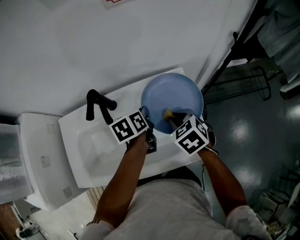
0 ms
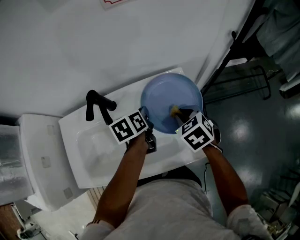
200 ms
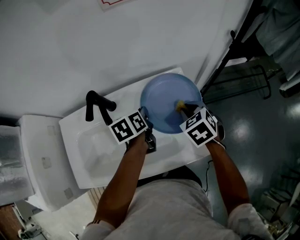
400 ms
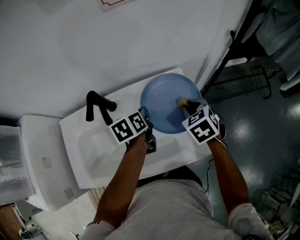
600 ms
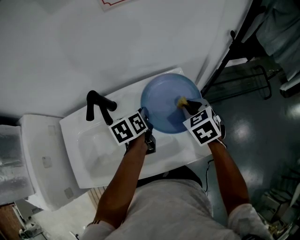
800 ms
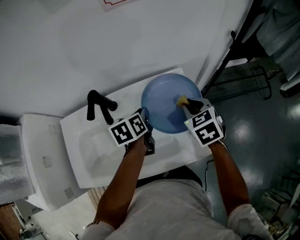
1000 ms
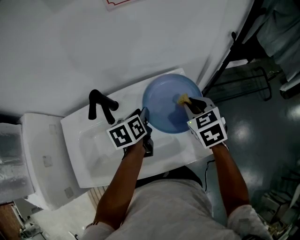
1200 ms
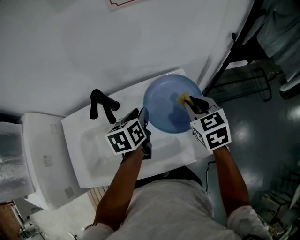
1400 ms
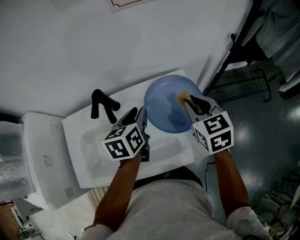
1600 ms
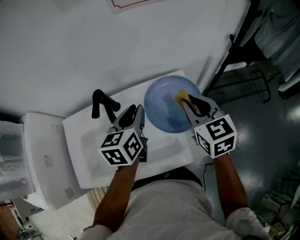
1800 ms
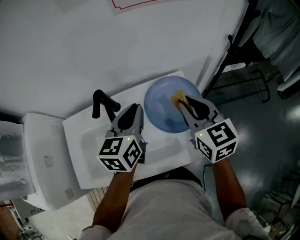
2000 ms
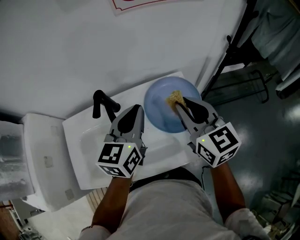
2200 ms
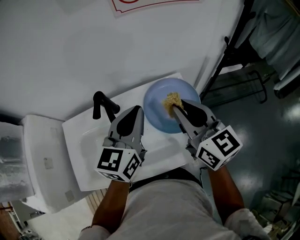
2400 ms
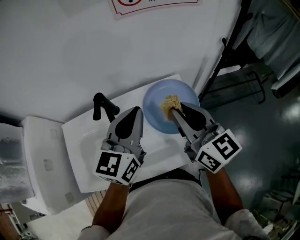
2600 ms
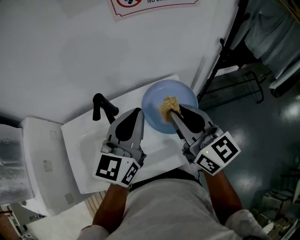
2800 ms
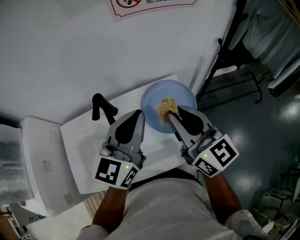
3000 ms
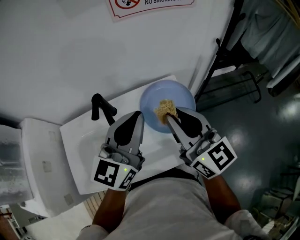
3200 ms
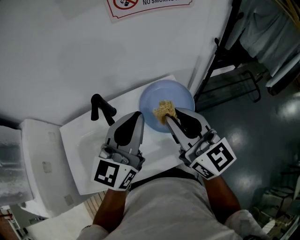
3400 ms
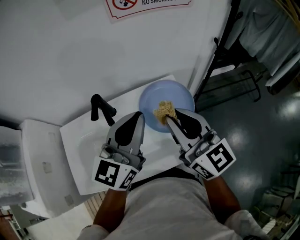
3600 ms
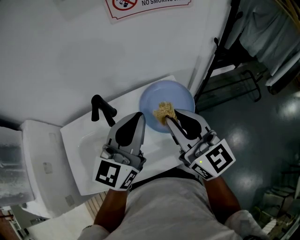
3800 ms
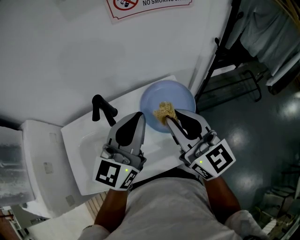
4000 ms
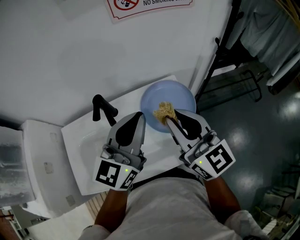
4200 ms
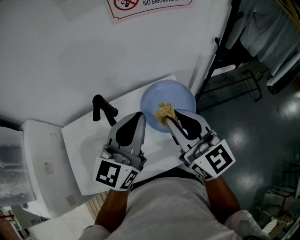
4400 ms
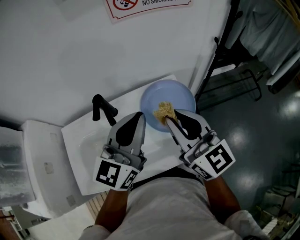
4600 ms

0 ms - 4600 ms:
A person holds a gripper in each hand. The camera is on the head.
0 ms - 1600 ms: The left gripper travels upward by about 10 cm, and opens its fingers. Meanwhile the right gripper travels upward and to the right by about 10 cm, and swivels roughly 30 degrees.
1600 ms - 3000 ms: The right gripper moves upward, backward and to the left, approximately 15 cm, and tilts its fingers approximately 40 degrees upward. The left gripper shifts about 15 cm upward, tips its fingers upward by roughly 30 degrees, and closes.
3000 ms - 4600 ms: The grippers stay close to where they were, moving slightly.

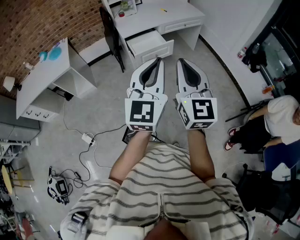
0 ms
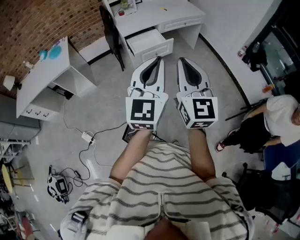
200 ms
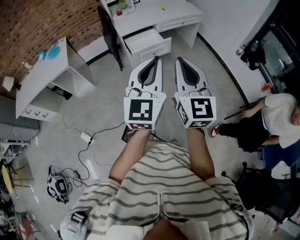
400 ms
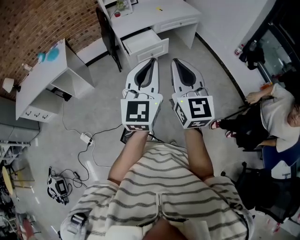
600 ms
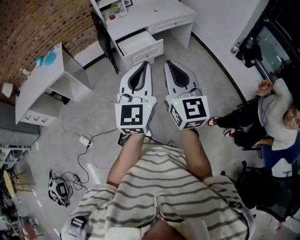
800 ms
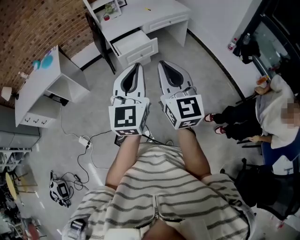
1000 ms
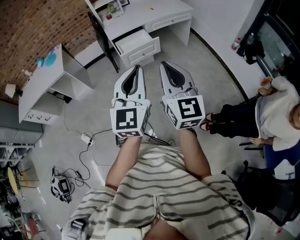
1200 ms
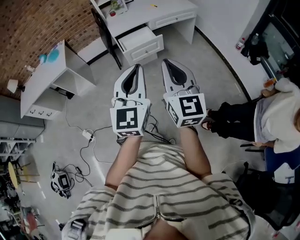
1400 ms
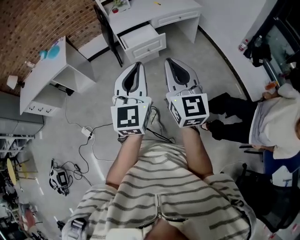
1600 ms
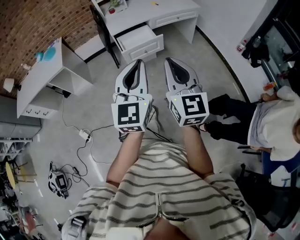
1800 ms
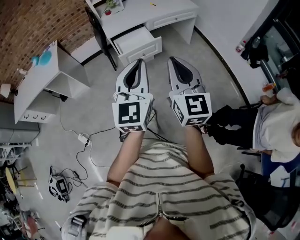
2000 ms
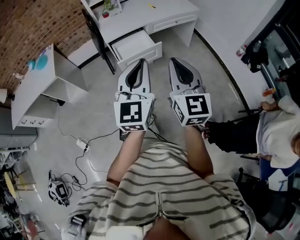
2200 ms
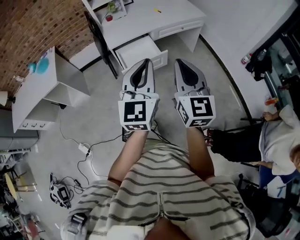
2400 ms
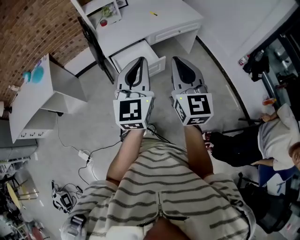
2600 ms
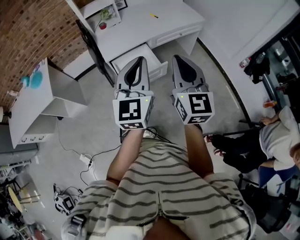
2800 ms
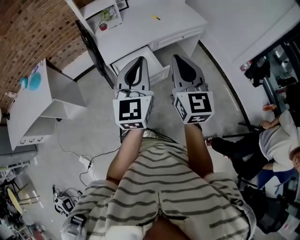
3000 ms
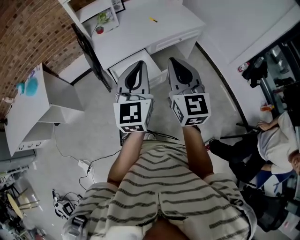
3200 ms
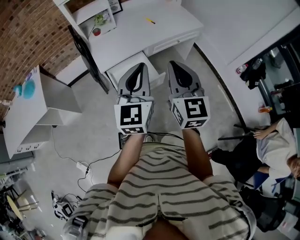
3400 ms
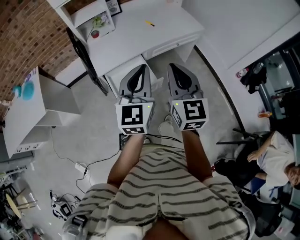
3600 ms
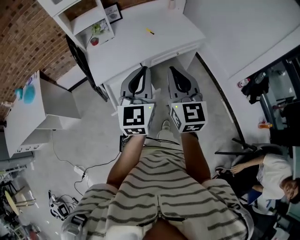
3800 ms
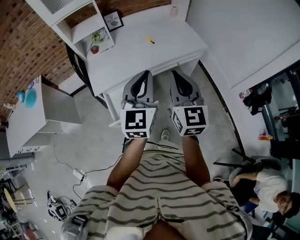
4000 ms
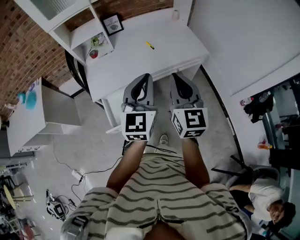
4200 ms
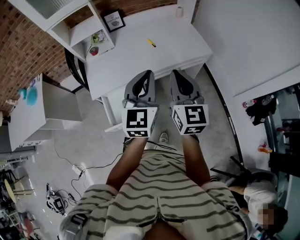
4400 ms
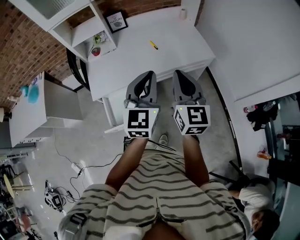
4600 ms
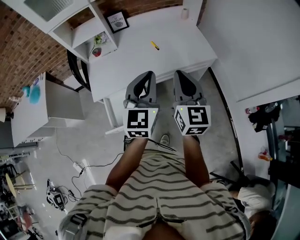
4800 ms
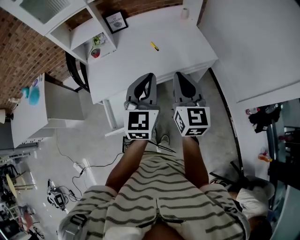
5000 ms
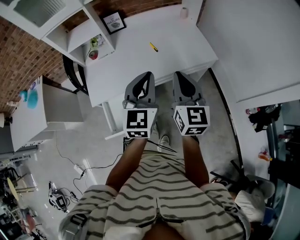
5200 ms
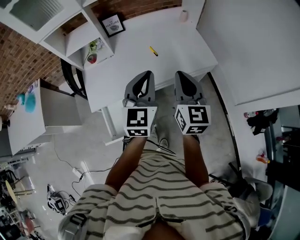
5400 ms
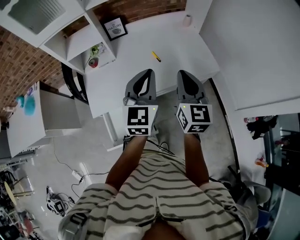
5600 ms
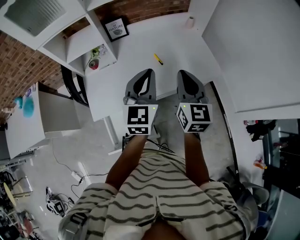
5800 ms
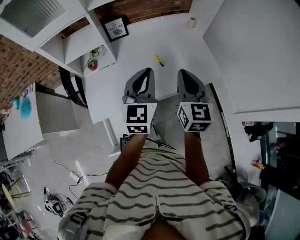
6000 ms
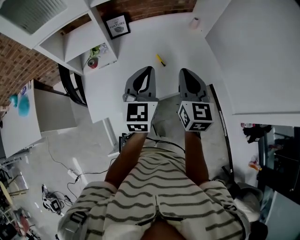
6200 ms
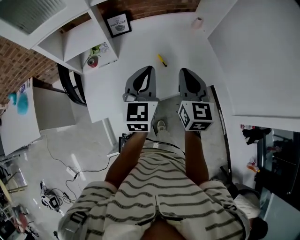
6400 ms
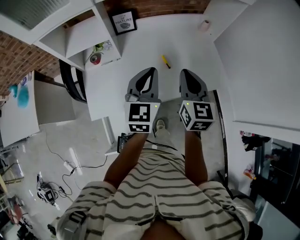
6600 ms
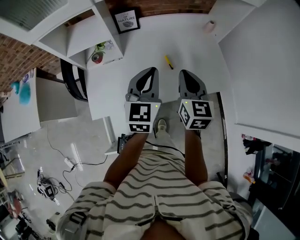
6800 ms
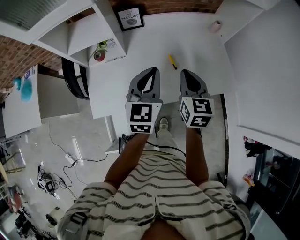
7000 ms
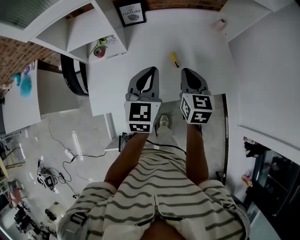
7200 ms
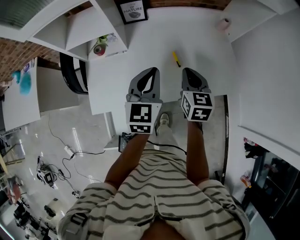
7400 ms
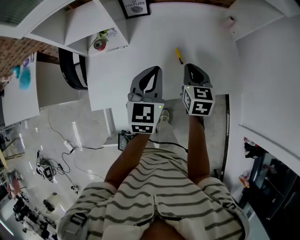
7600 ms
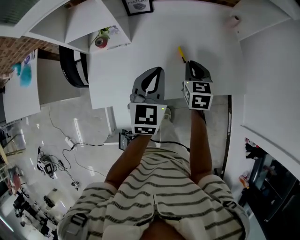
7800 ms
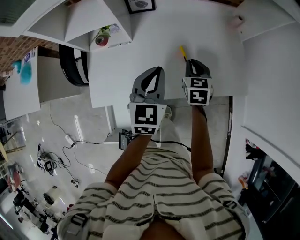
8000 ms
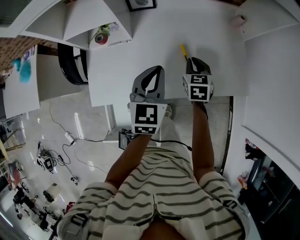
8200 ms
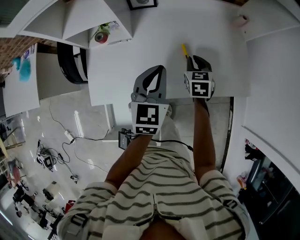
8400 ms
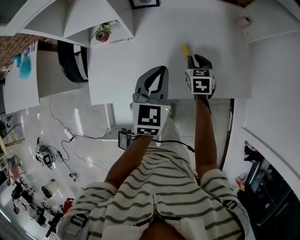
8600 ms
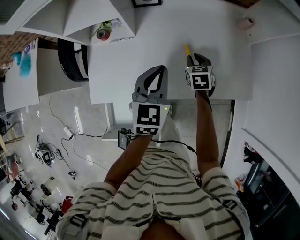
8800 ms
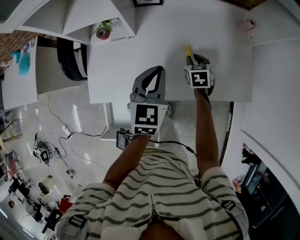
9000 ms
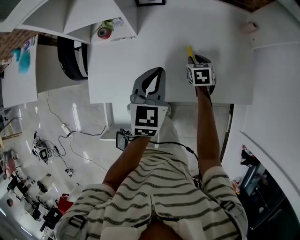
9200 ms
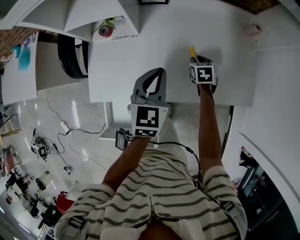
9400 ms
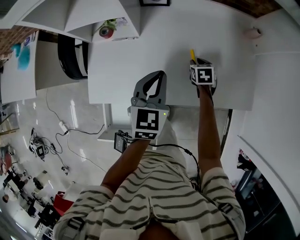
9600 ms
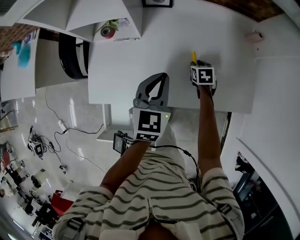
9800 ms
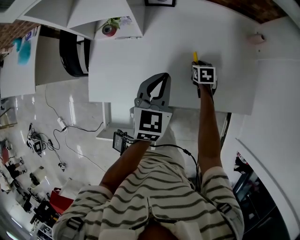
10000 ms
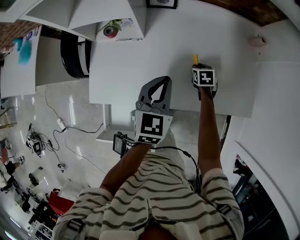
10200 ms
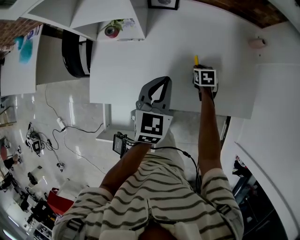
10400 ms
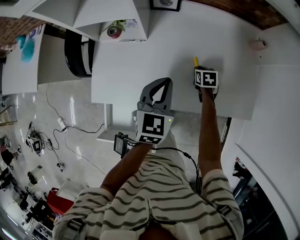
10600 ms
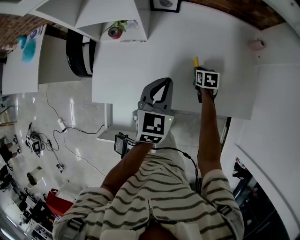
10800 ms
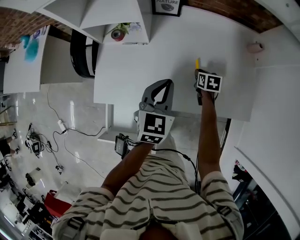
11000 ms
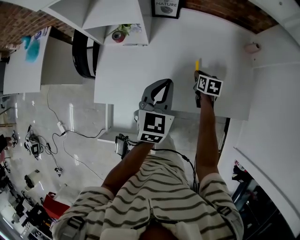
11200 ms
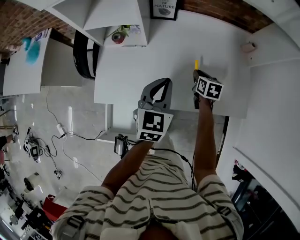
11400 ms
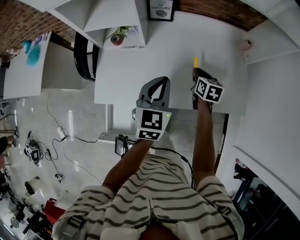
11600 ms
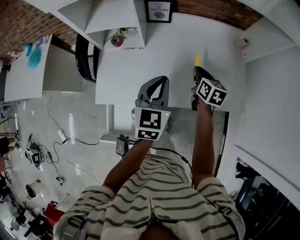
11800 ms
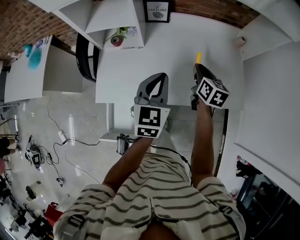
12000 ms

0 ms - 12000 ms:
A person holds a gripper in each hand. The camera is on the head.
0 ms - 1600 ms: Both grippers travel together to the right, approximately 10 cm.
1600 ms - 3000 ms: The two grippers travel together, forward, some 40 cm.
3000 ms - 4400 ms: The two grippers go roughly 30 cm forward and to the right.
4400 ms - 6000 ms: Both grippers travel together forward, approximately 25 cm.
6000 ms - 7600 ms: The left gripper goes some 15 cm downward and forward. The right gripper travels downward and forward by some 25 cm, and rotates roughly 30 degrees.
7600 ms - 9000 ms: The right gripper moves downward and forward, roughly 20 cm, and rotates some 20 degrees, while the left gripper moves downward, roughly 5 cm.
9000 ms - 10400 ms: The right gripper goes about 10 cm downward.
10400 ms - 12000 ms: The left gripper goes some 10 cm upward and backward. Meanwhile the right gripper is displaced upward by about 25 cm, and angles its fingers upward, by some 30 degrees.

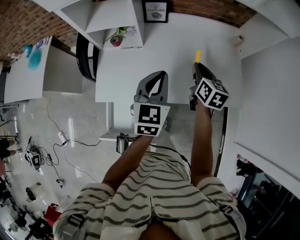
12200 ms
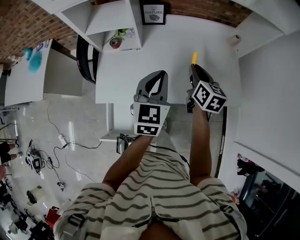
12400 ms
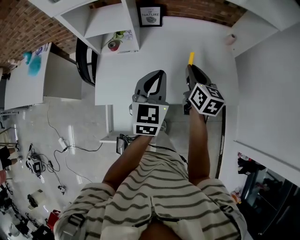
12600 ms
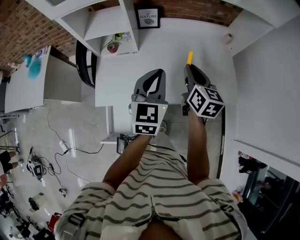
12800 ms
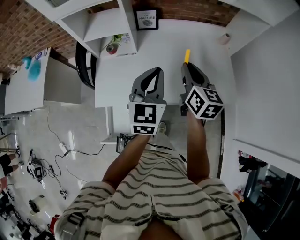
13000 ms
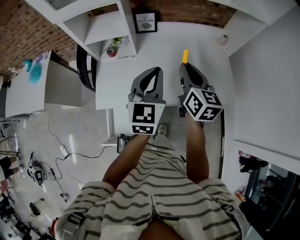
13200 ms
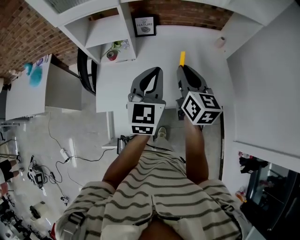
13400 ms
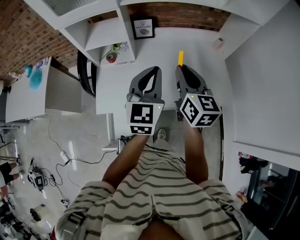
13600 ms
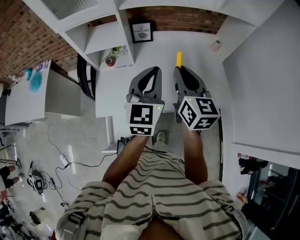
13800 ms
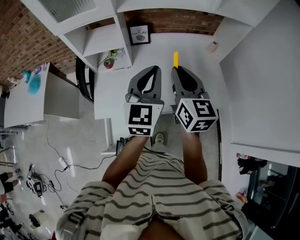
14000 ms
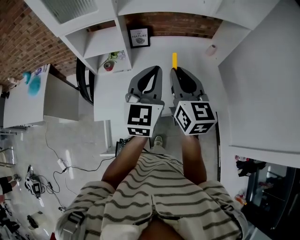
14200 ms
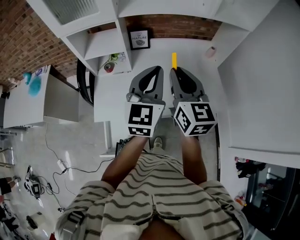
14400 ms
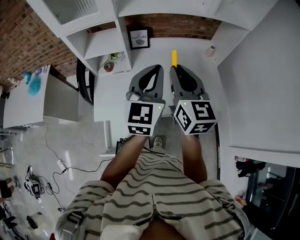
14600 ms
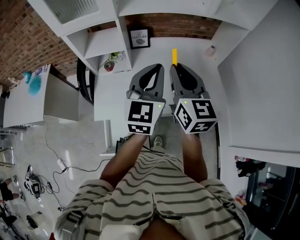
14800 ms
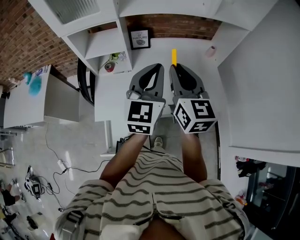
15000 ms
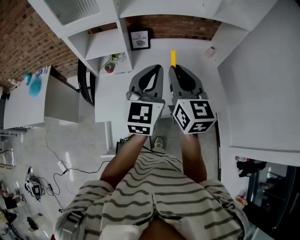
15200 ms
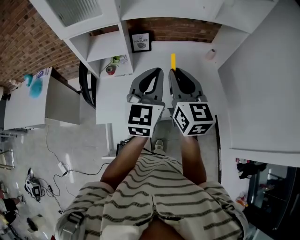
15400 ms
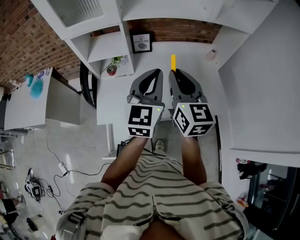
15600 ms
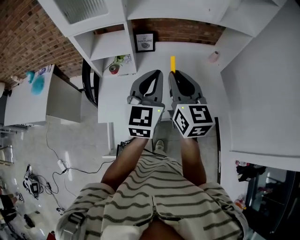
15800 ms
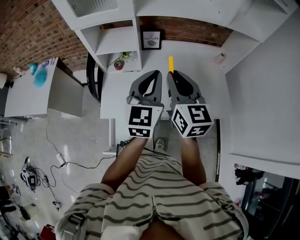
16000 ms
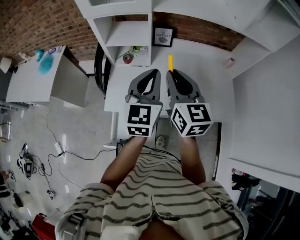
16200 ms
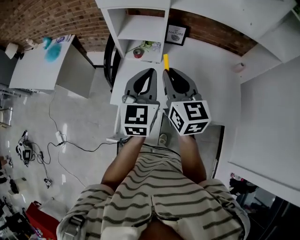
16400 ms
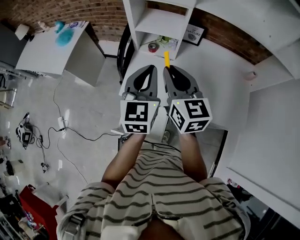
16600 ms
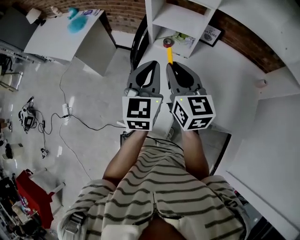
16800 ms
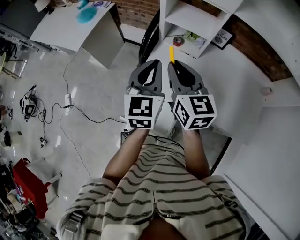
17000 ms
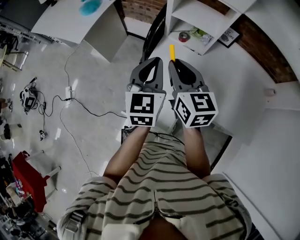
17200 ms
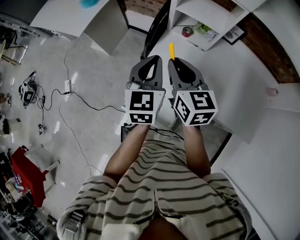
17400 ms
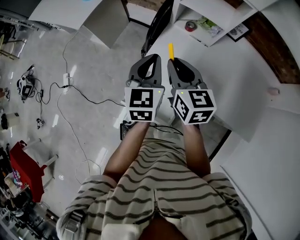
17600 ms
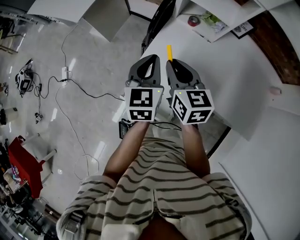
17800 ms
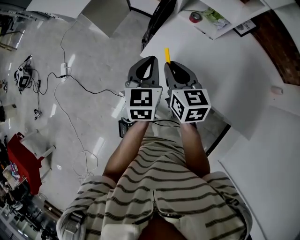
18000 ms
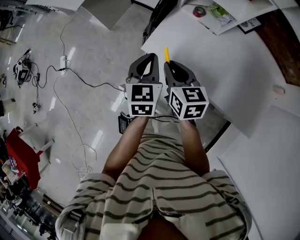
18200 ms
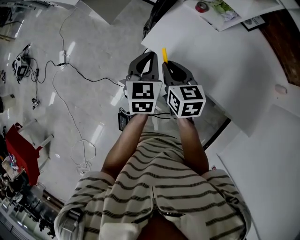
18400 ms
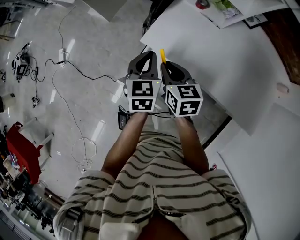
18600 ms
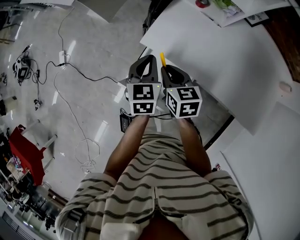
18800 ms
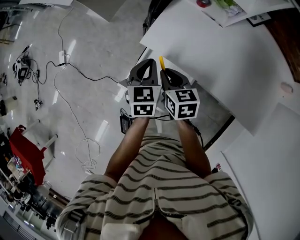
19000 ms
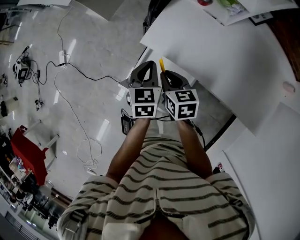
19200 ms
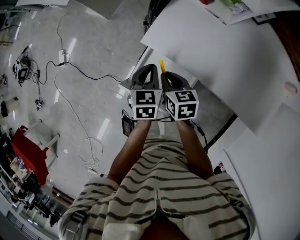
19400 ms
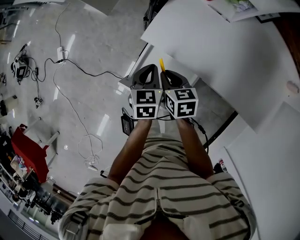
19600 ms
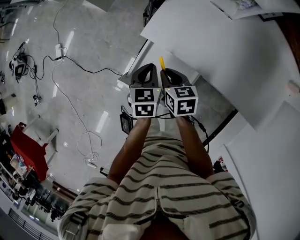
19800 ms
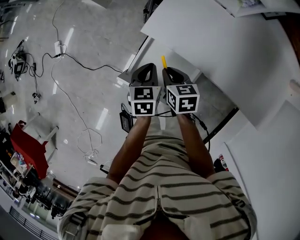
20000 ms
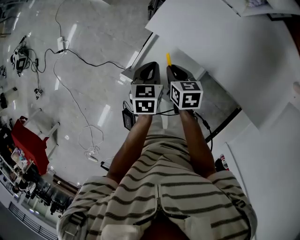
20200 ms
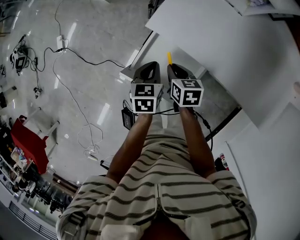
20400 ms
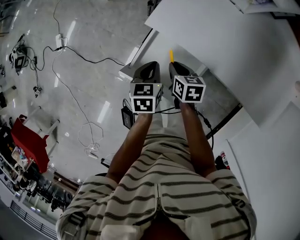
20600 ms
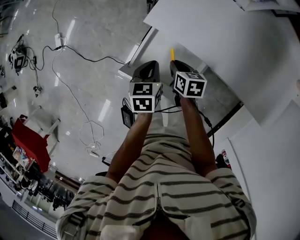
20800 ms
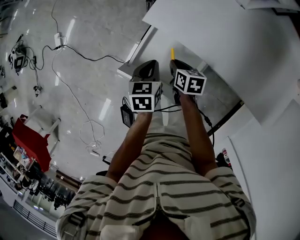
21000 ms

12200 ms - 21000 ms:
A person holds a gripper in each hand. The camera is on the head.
12200 ms - 13600 ms: The right gripper shifts about 20 cm upward and backward. The left gripper travels upward by roughly 10 cm.
13600 ms - 15200 ms: Both grippers move upward, roughly 5 cm.
15200 ms - 16600 ms: The left gripper moves roughly 20 cm, and rotates approximately 30 degrees. Meanwhile the right gripper ends up some 20 cm from where it was, and swivels about 30 degrees.
16600 ms - 18000 ms: Both grippers move downward and to the left, roughly 20 cm. The right gripper rotates some 30 degrees; the left gripper changes its angle by some 20 degrees.
18000 ms - 19600 ms: The grippers both shift downward by approximately 20 cm. The right gripper rotates some 20 degrees; the left gripper rotates about 20 degrees.
19600 ms - 21000 ms: The left gripper heads downward, covering approximately 5 cm. Meanwhile the right gripper heads downward, covering some 15 cm.
